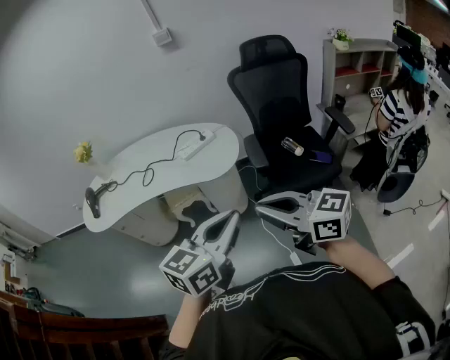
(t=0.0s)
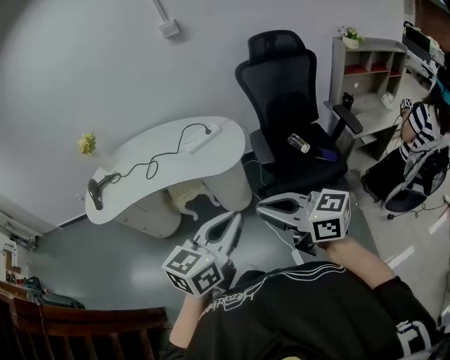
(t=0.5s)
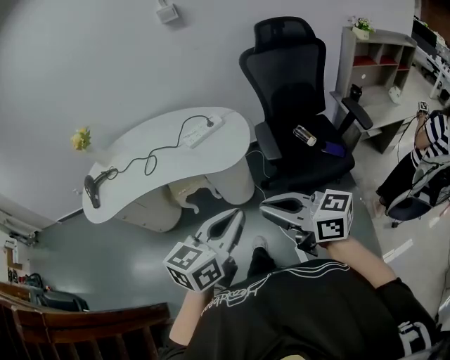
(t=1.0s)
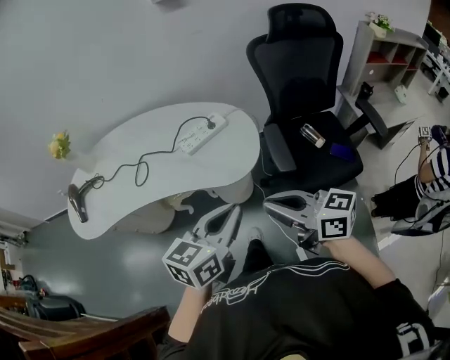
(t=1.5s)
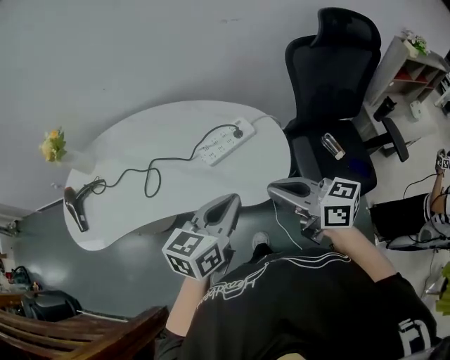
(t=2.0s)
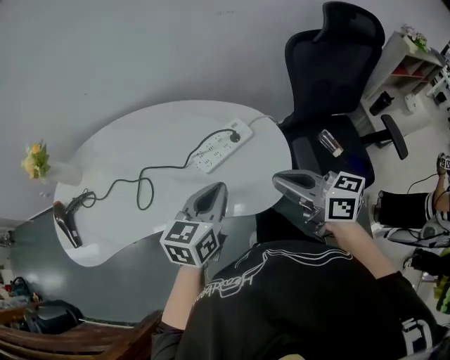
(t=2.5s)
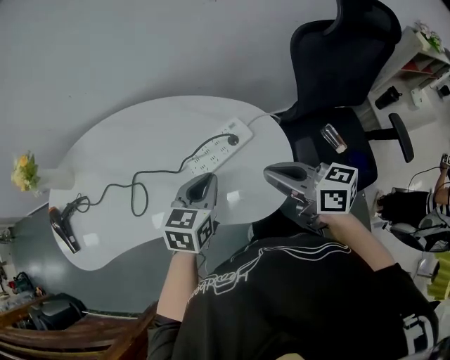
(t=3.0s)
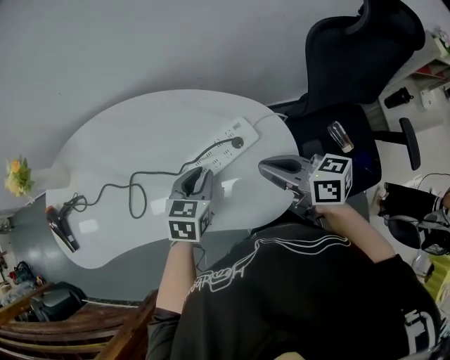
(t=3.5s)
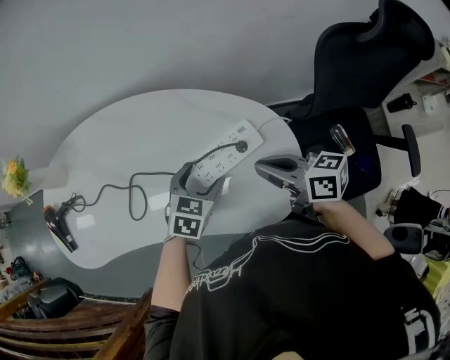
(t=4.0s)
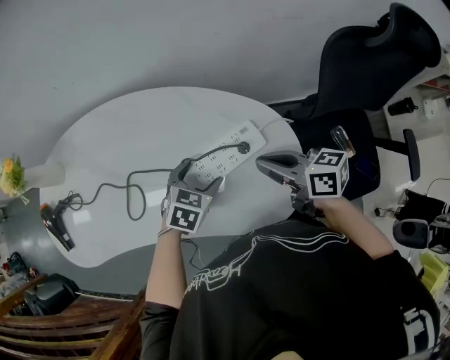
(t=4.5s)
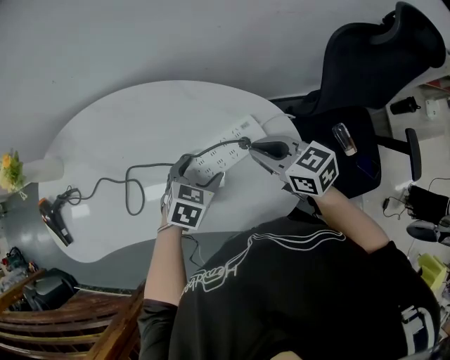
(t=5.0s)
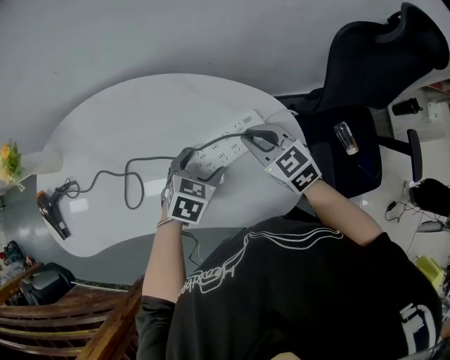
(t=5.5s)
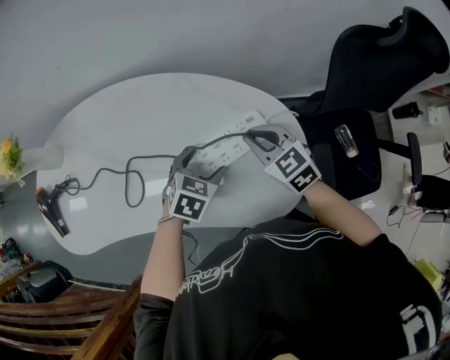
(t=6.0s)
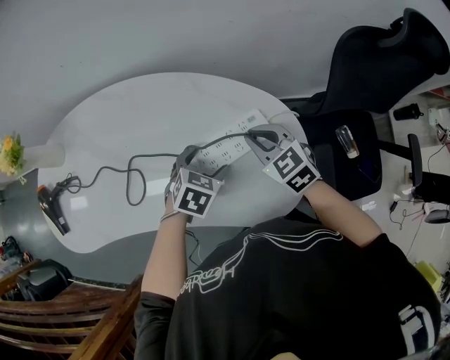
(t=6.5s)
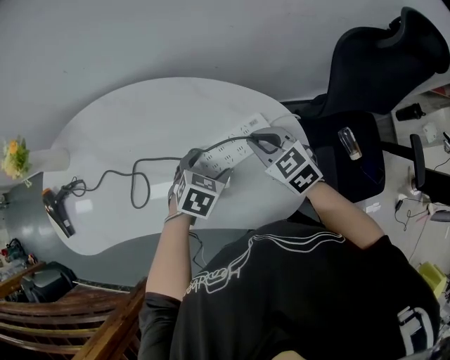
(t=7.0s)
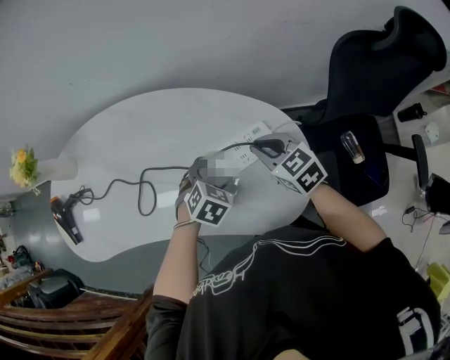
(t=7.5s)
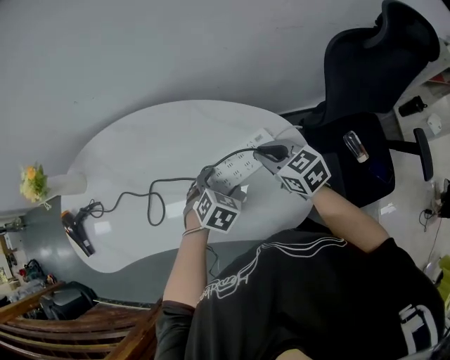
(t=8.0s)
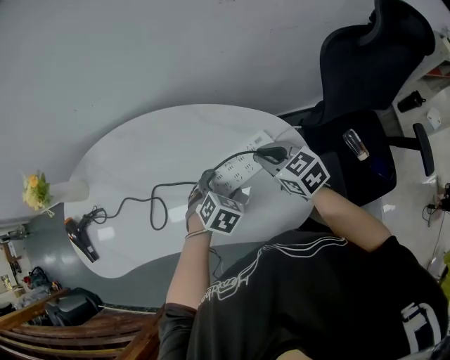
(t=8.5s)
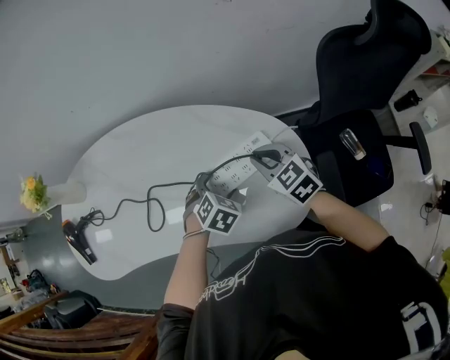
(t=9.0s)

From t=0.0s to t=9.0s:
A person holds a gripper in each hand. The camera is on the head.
From t=0.0s to t=2.0s: The two grippers travel together, forward, some 40 cm.
From t=2.0s to t=4.5s: The two grippers go about 30 cm forward and downward. The left gripper angles its fingers downward, by about 30 degrees, and opens up.
From t=4.5s to t=7.0s: The right gripper is displaced downward by roughly 5 cm, and twists approximately 40 degrees counterclockwise, seen from behind.
From t=7.0s to t=9.0s: The grippers stay close to where they were, moving slightly.

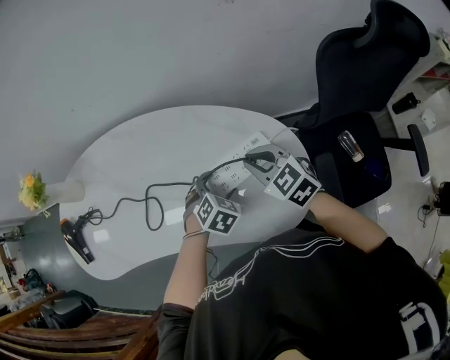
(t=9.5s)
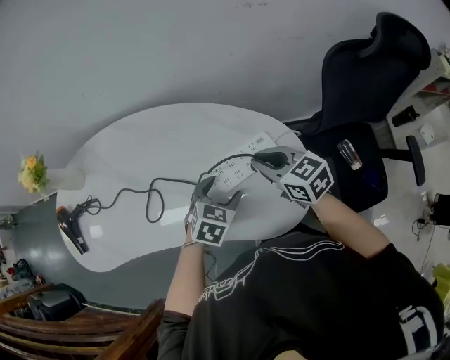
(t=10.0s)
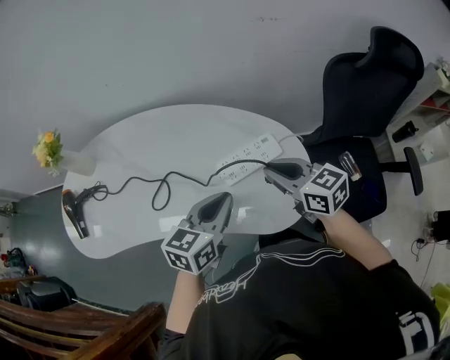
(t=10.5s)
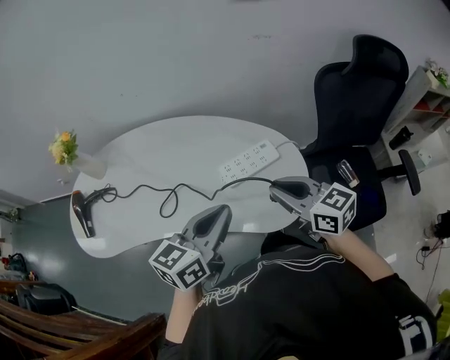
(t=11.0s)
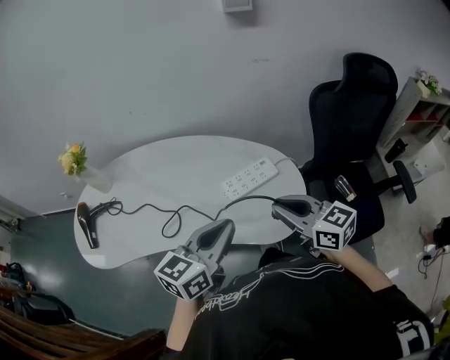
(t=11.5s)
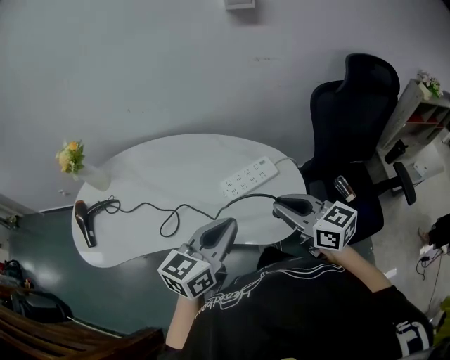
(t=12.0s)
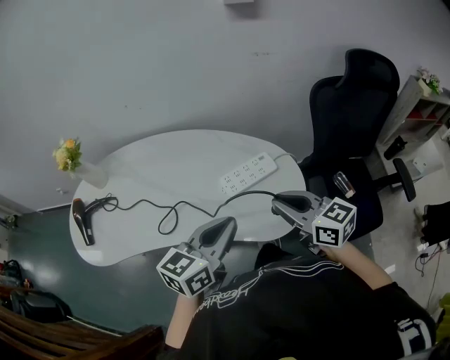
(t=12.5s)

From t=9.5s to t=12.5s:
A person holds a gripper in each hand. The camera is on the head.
From t=9.5s to t=11.0s: The left gripper goes about 30 cm upward and backward, tilts its fingers approximately 50 degrees upward, and closes up, while the right gripper travels backward and upward by about 20 cm, and swivels about 30 degrees.
From t=11.0s to t=12.5s: The grippers stay close to where they were, moving slightly.

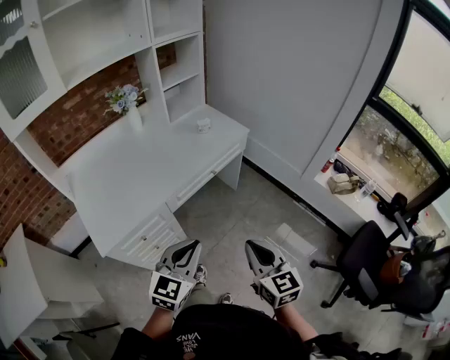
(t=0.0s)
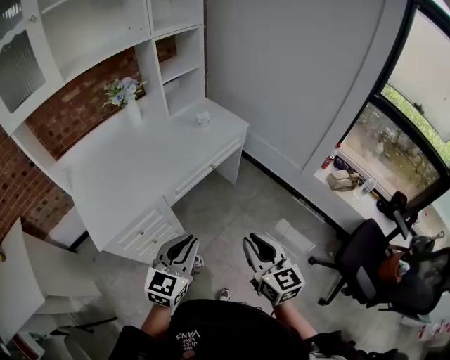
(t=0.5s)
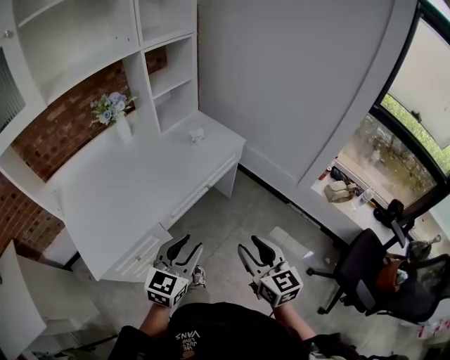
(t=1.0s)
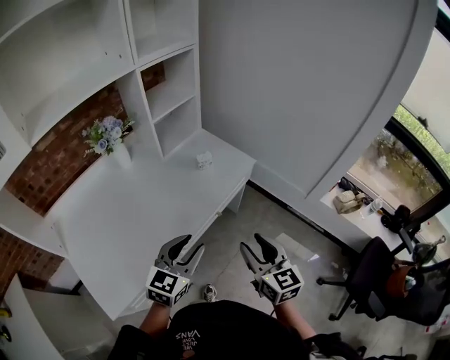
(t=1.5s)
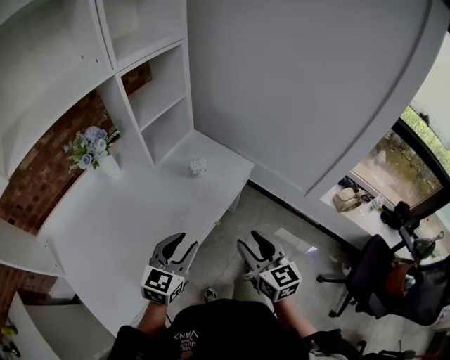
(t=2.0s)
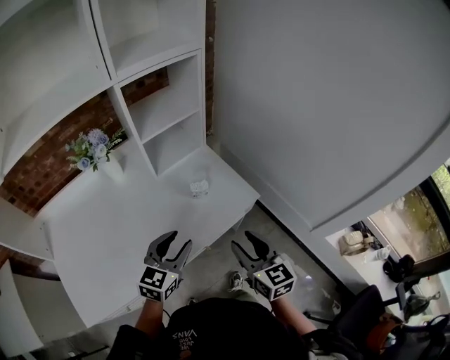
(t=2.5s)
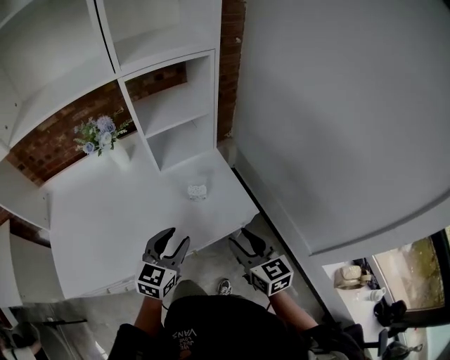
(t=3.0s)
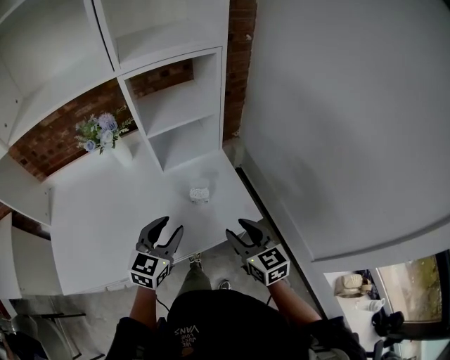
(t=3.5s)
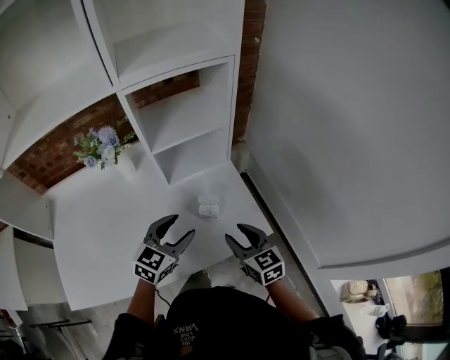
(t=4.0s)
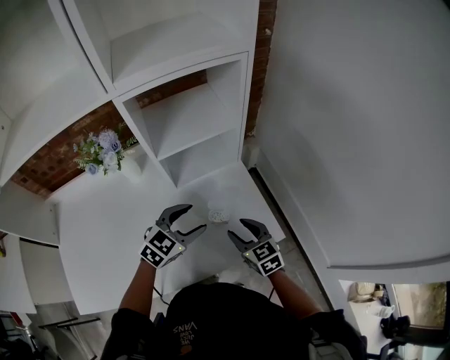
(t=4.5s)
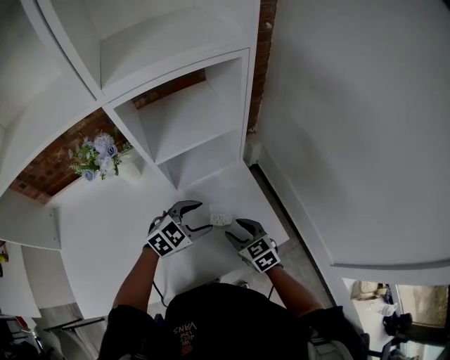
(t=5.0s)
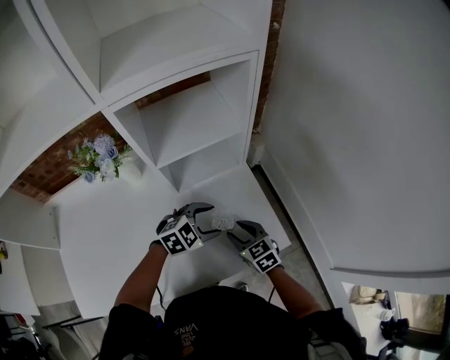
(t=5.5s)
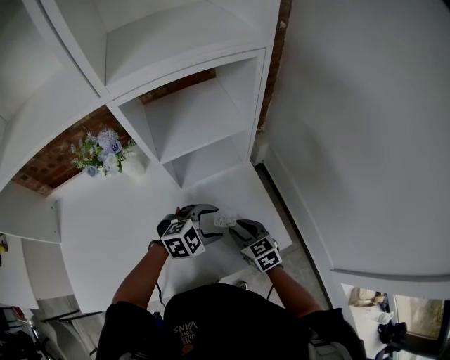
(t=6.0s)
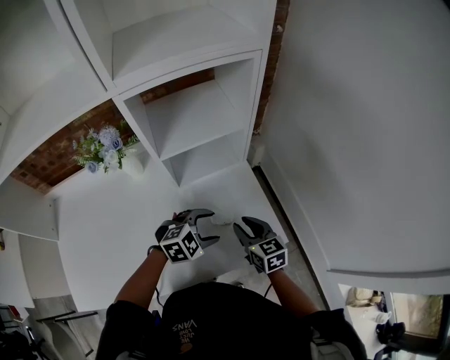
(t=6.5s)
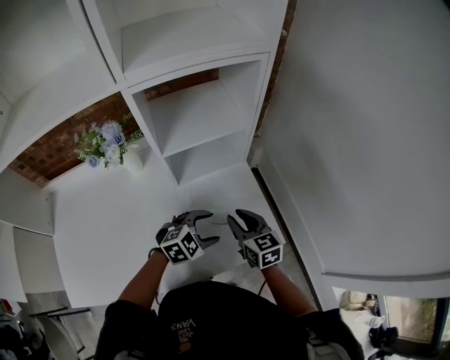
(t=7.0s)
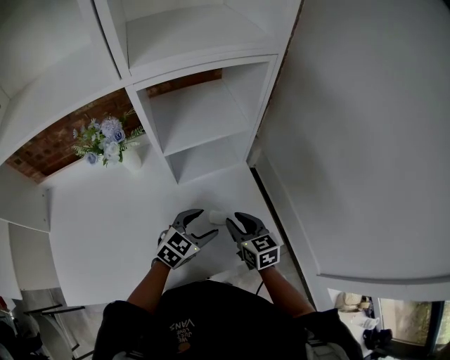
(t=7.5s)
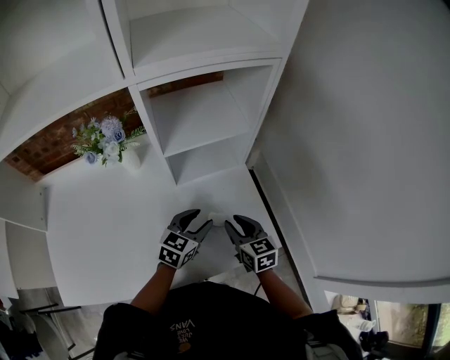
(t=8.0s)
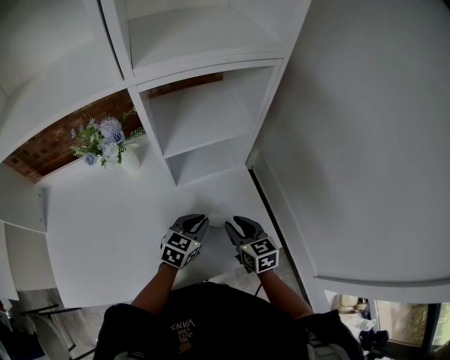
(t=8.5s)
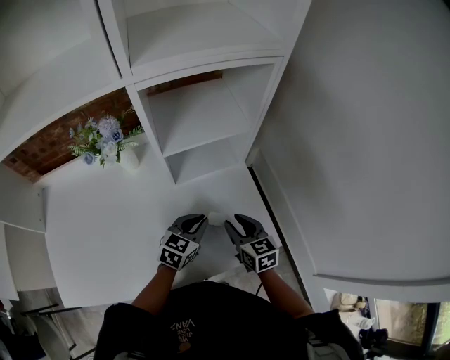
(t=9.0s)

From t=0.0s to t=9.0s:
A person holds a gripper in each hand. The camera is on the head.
From t=0.0s to t=2.0s: The grippers both shift forward by roughly 35 cm. The right gripper opens up; the left gripper opens its fingers.
From t=2.0s to t=4.5s: The right gripper shifts by some 35 cm, and rotates some 40 degrees. Meanwhile the left gripper shifts by approximately 30 cm, and opens its fingers.
From t=4.5s to t=7.0s: The right gripper shifts by some 5 cm. The left gripper travels downward by some 10 cm, and rotates some 20 degrees.
From t=7.0s to t=9.0s: The left gripper moves about 5 cm, rotates approximately 40 degrees, and closes.

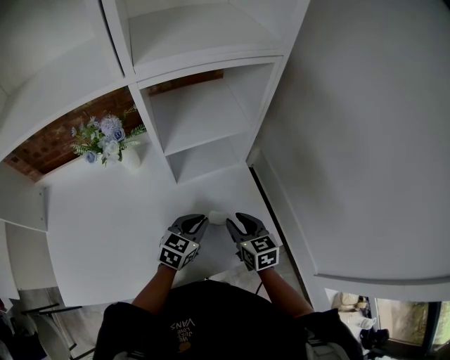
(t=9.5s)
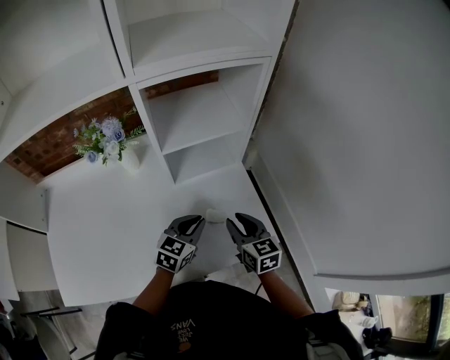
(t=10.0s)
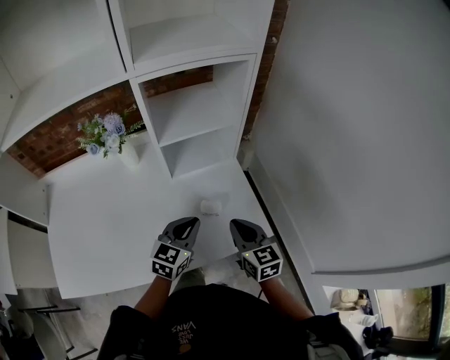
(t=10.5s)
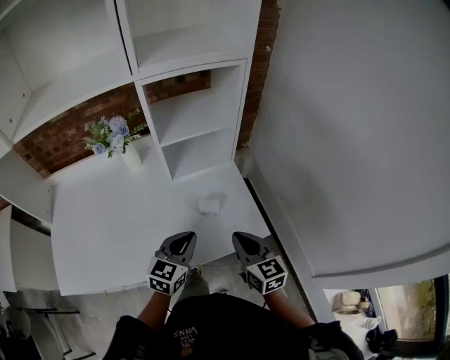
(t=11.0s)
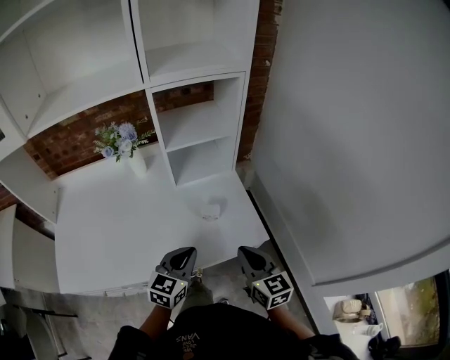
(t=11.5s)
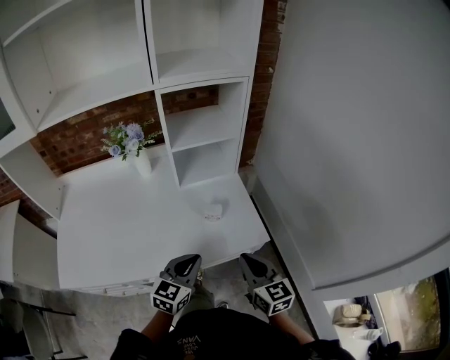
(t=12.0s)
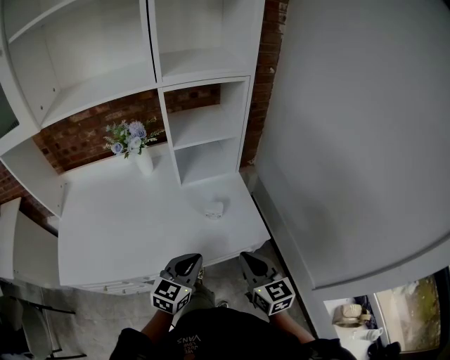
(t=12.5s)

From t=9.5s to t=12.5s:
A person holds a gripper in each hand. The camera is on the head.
From t=9.5s to t=11.0s: The grippers both shift backward and upward by about 15 cm. The right gripper closes.
From t=11.0s to t=12.5s: The grippers both shift backward by about 10 cm.

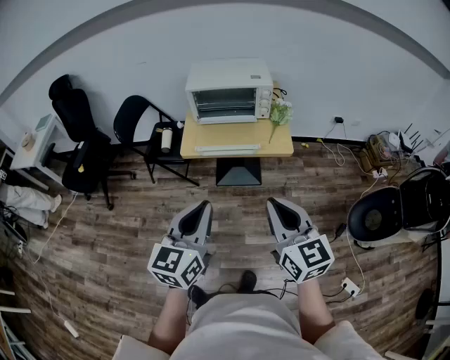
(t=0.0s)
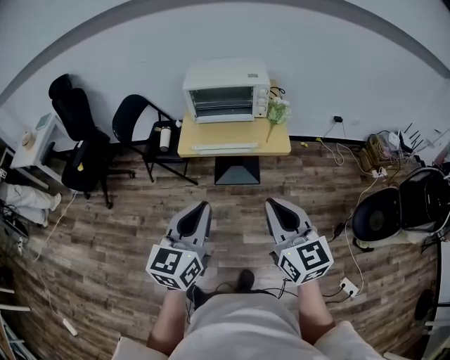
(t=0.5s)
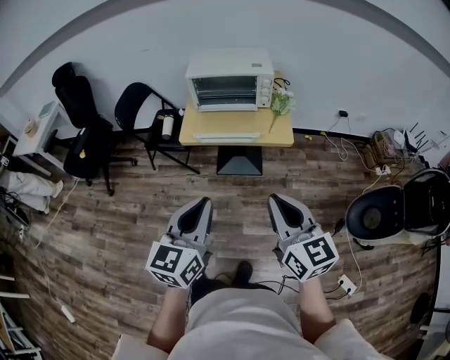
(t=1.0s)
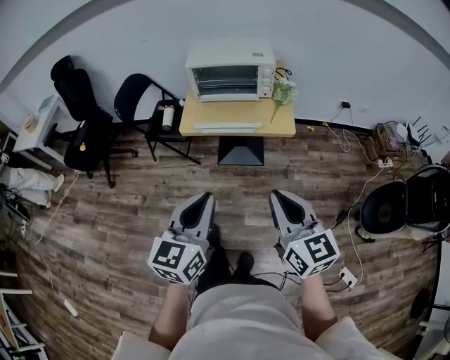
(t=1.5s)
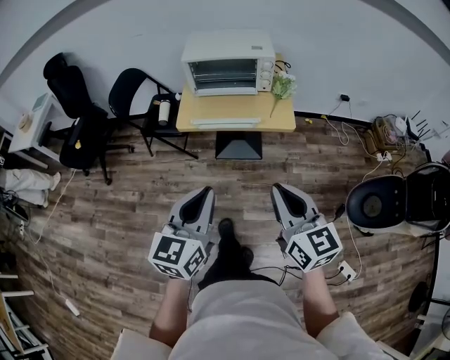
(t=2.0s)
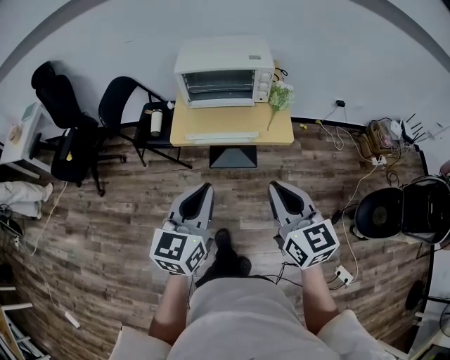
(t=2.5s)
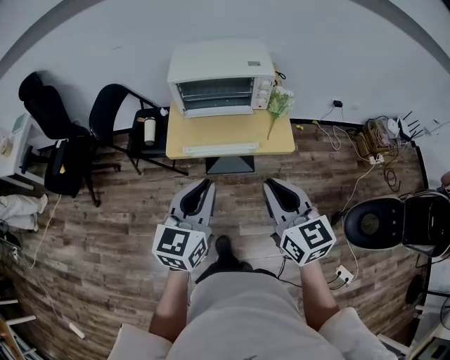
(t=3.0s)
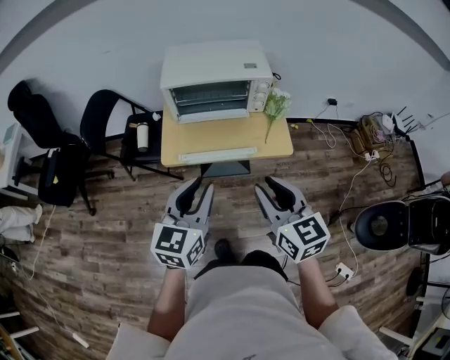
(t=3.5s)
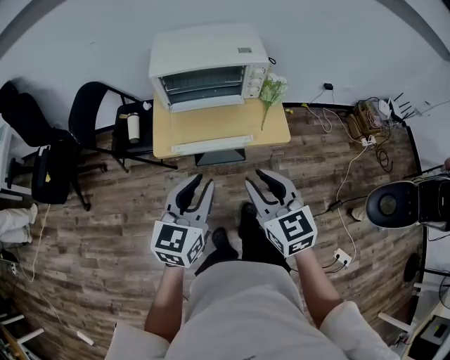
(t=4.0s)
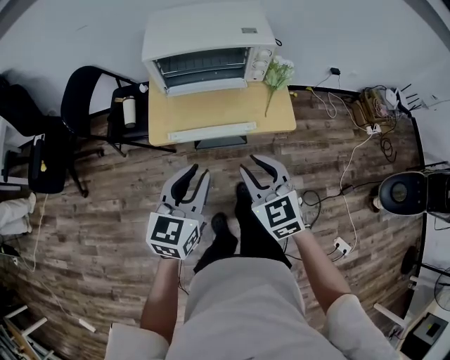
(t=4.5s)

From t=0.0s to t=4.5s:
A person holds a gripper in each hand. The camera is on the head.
From t=0.0s to t=2.0s: The grippers make only small movements.
From t=2.0s to t=4.5s: The grippers both shift forward and downward by some 30 cm. The right gripper turns by some 30 degrees, and opens up.
